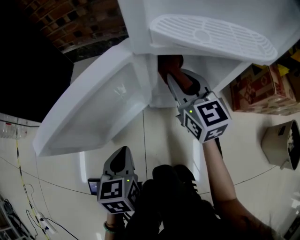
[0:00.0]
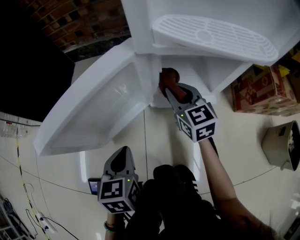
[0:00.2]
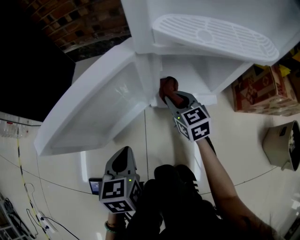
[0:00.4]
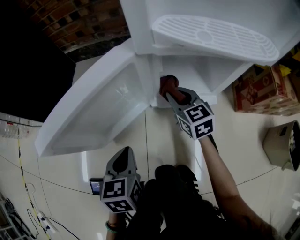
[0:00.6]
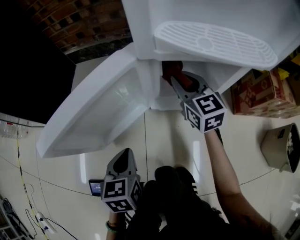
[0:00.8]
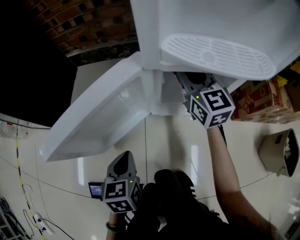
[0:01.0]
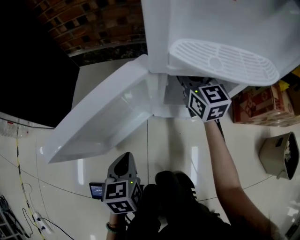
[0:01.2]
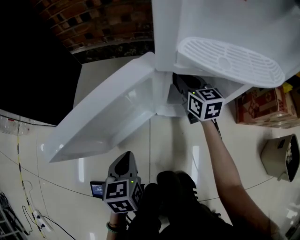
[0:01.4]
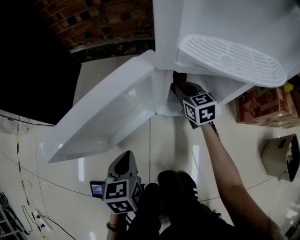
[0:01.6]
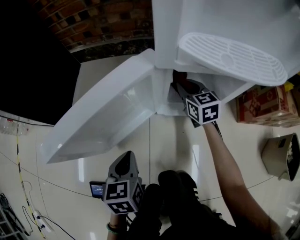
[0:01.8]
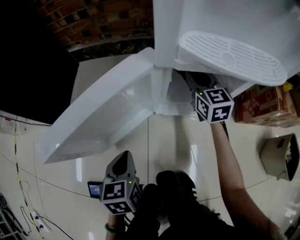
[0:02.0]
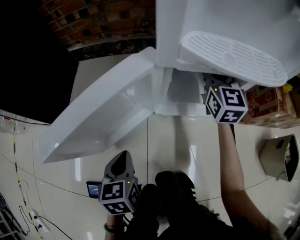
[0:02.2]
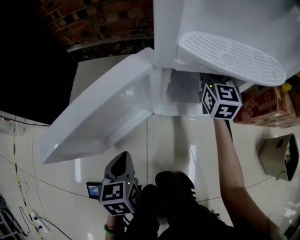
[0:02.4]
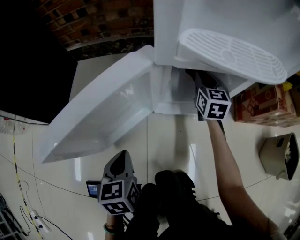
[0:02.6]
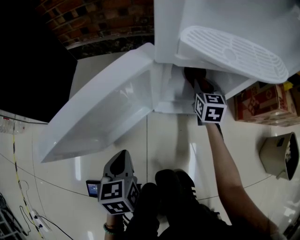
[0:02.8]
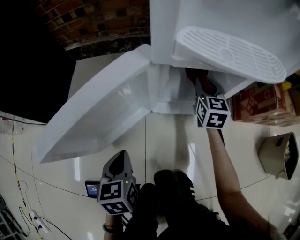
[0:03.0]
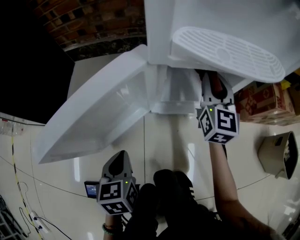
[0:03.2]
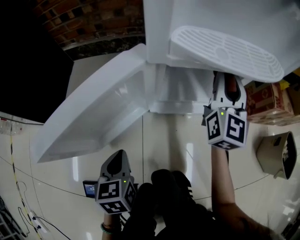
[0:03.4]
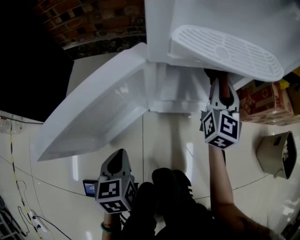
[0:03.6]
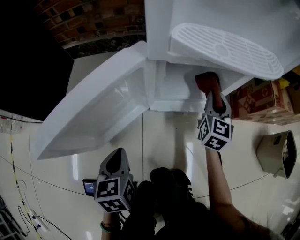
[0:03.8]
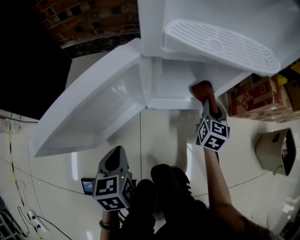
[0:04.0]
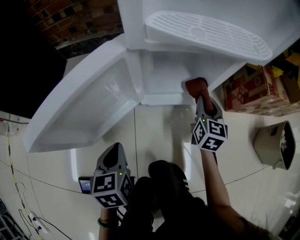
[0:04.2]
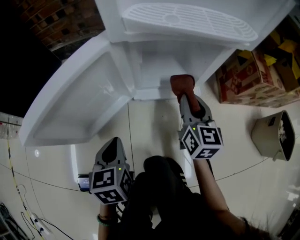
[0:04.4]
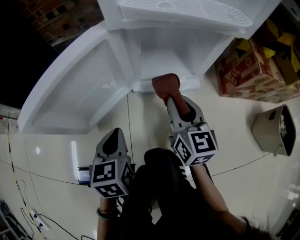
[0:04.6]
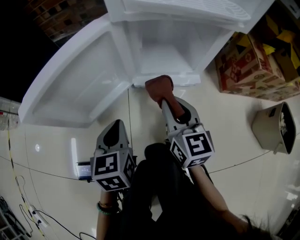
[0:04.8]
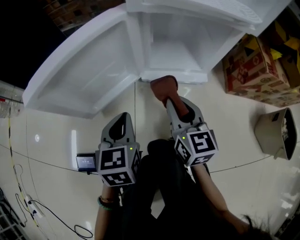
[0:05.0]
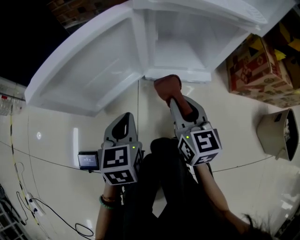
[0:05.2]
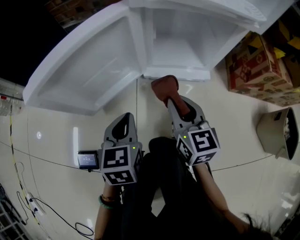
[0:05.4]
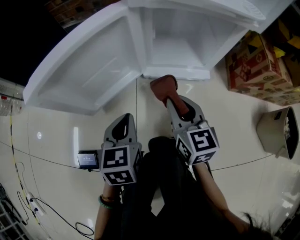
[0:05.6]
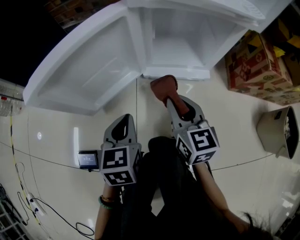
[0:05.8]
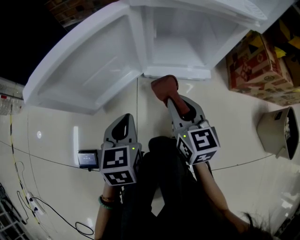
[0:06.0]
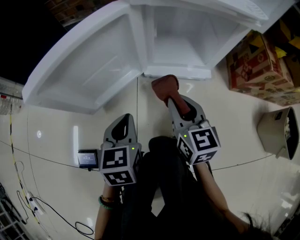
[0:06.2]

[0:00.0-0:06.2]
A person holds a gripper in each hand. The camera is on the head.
0:00.0 to 0:01.6: The right gripper swings up and down, some 15 cm each way, with 2 reversals.
0:01.6 to 0:03.2: The right gripper goes up and down, approximately 15 cm each way, reversing 2 times, and swivels some 40 degrees.
0:03.2 to 0:04.6: The left gripper travels to the right by roughly 5 cm; the right gripper swings up and down, some 20 cm each way, with 2 reversals, and rotates some 20 degrees.
0:04.6 to 0:06.2: The right gripper is displaced to the left by about 5 cm.

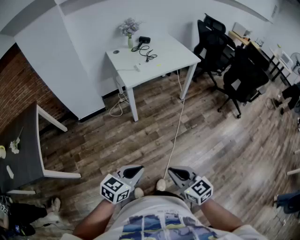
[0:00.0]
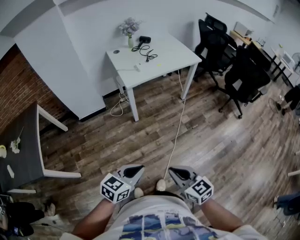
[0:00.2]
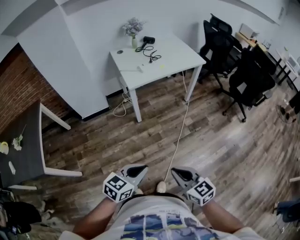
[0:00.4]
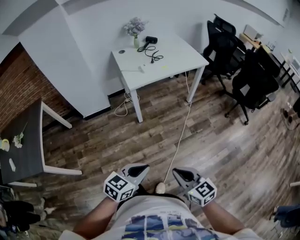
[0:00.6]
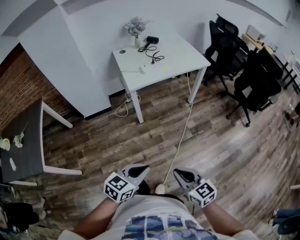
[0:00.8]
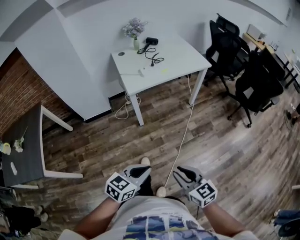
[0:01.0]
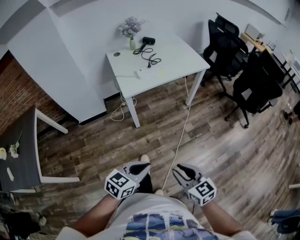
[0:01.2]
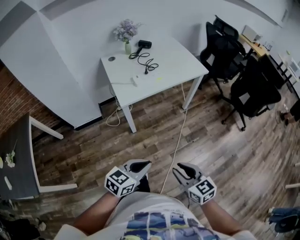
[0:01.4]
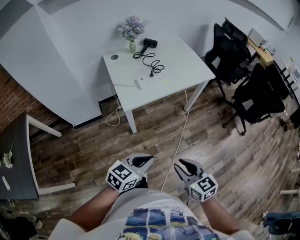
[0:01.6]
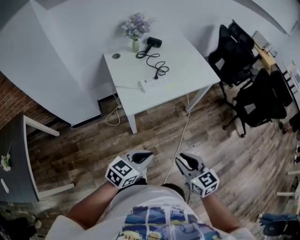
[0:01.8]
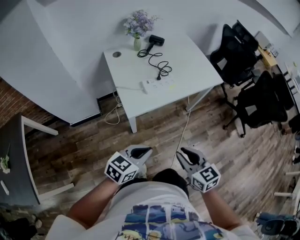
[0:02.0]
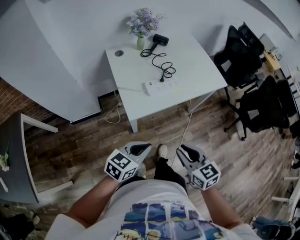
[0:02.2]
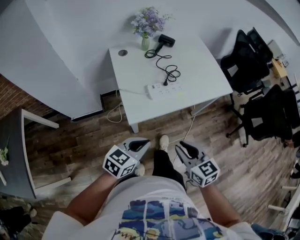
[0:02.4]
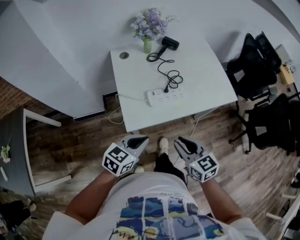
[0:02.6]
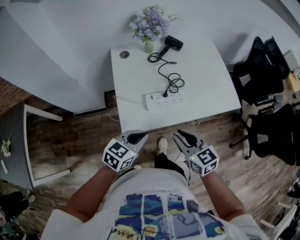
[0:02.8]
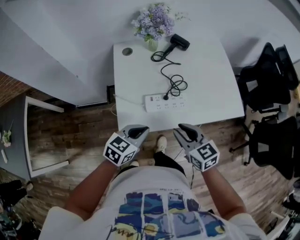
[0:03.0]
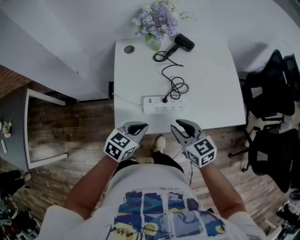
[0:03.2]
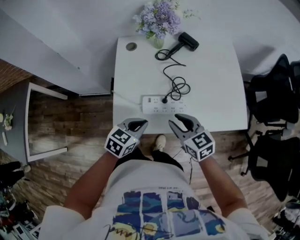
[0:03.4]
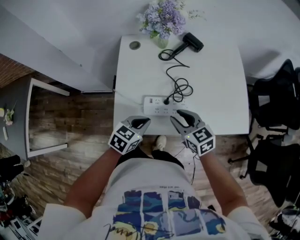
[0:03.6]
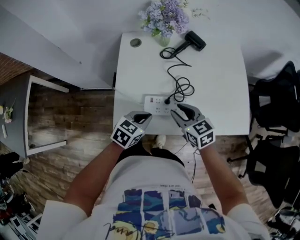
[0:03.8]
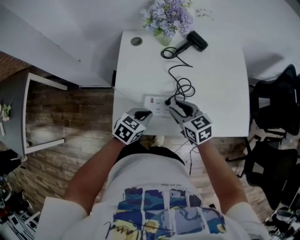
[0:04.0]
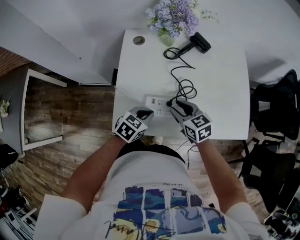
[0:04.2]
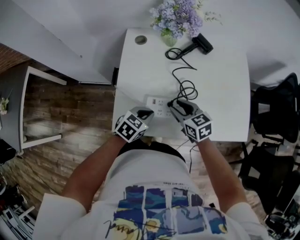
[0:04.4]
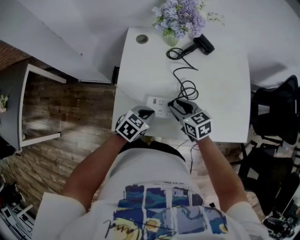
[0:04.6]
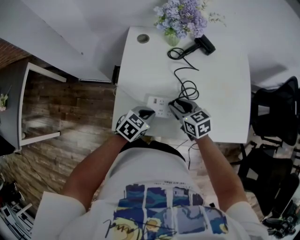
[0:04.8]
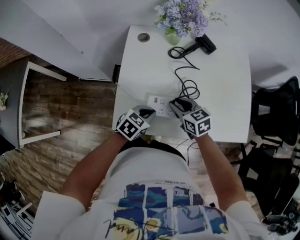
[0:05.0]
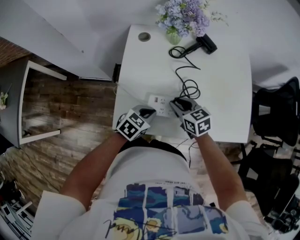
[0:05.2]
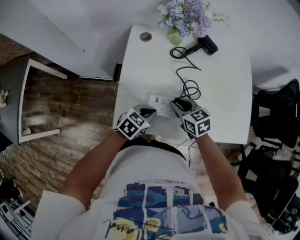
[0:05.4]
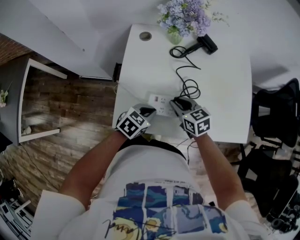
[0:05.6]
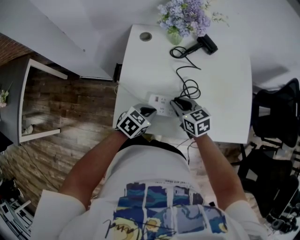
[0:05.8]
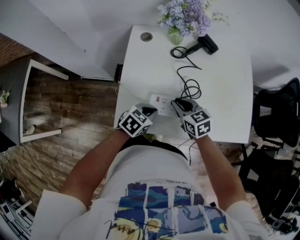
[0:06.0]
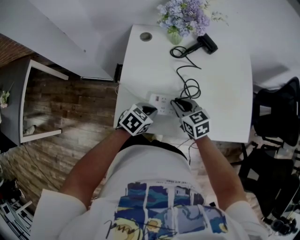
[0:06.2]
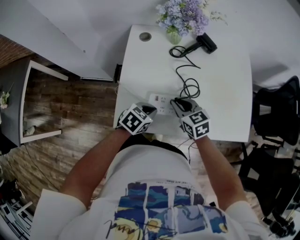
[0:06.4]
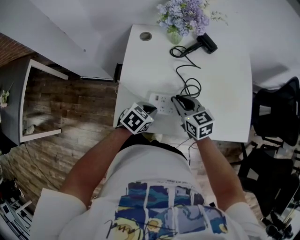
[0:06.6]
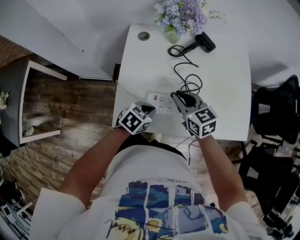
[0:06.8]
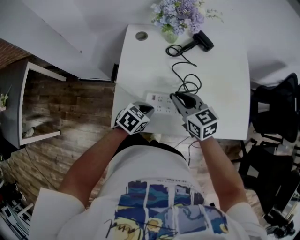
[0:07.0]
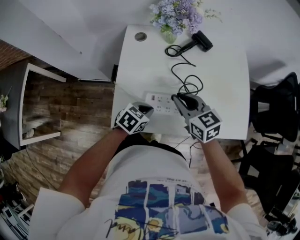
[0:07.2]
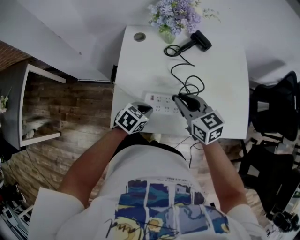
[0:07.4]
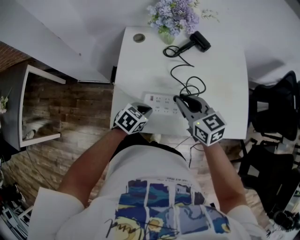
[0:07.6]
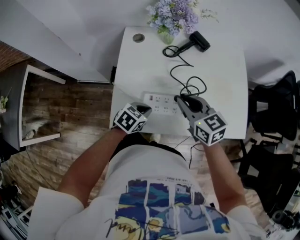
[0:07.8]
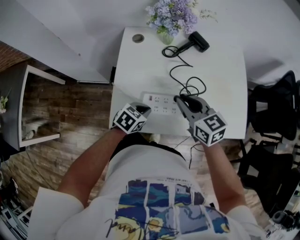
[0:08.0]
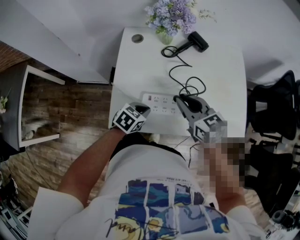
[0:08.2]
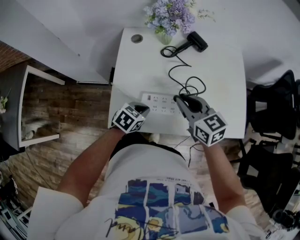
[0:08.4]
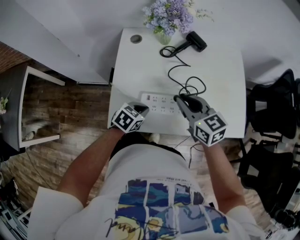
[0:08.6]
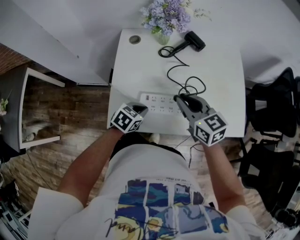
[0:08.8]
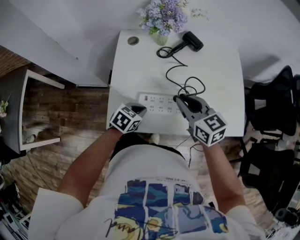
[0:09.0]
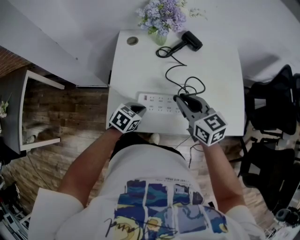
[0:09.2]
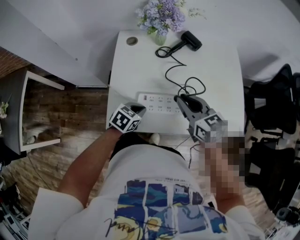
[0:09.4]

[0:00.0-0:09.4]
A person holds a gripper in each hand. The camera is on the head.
0:00.0 to 0:01.6: Both grippers move forward, roughly 30 cm. The right gripper opens its fingers.
0:01.6 to 0:03.2: Both grippers are carried approximately 40 cm. The left gripper changes its angle by some 30 degrees. Meanwhile the right gripper swivels approximately 20 degrees.
0:03.2 to 0:04.8: The left gripper travels downward and forward by approximately 10 cm. Meanwhile the right gripper moves forward and downward, approximately 15 cm.
0:04.8 to 0:06.2: The right gripper closes up.
0:06.2 to 0:07.8: The right gripper is displaced upward by approximately 10 cm.
0:07.8 to 0:09.4: The grippers stay close to where they were, moving slightly.

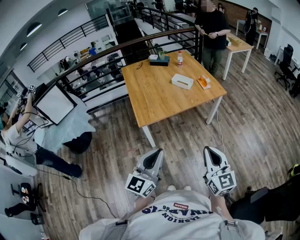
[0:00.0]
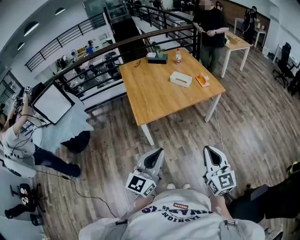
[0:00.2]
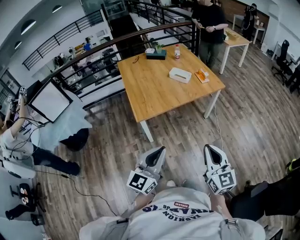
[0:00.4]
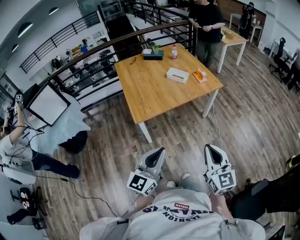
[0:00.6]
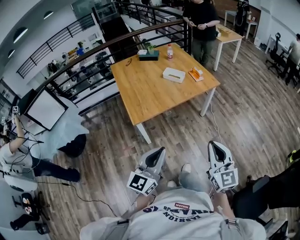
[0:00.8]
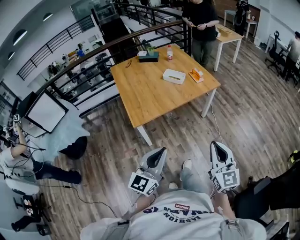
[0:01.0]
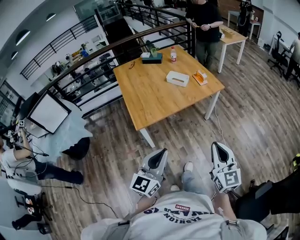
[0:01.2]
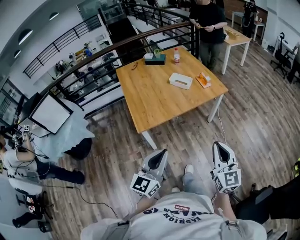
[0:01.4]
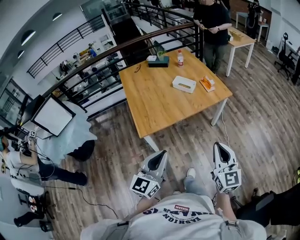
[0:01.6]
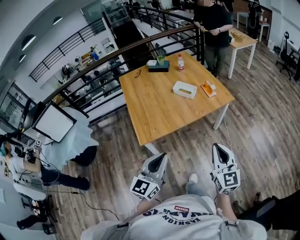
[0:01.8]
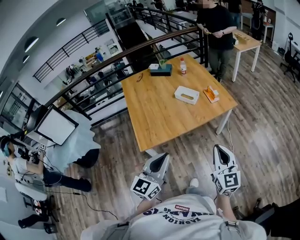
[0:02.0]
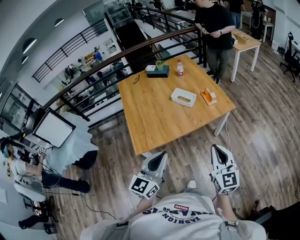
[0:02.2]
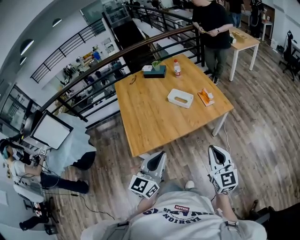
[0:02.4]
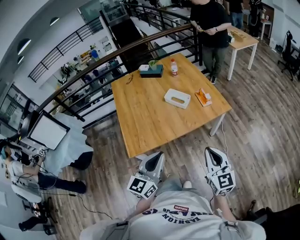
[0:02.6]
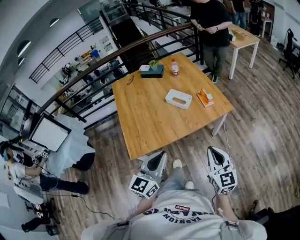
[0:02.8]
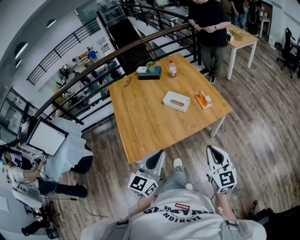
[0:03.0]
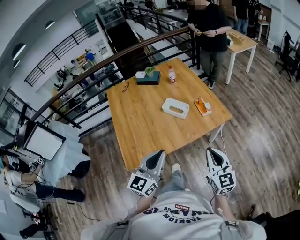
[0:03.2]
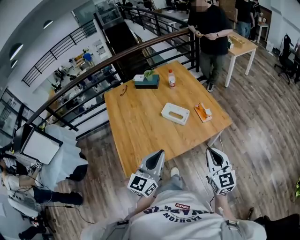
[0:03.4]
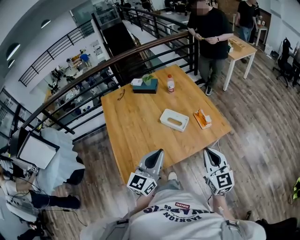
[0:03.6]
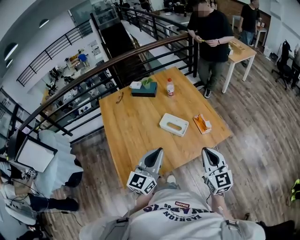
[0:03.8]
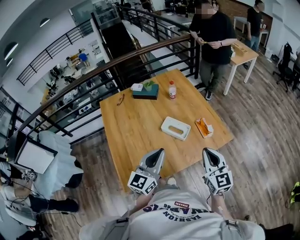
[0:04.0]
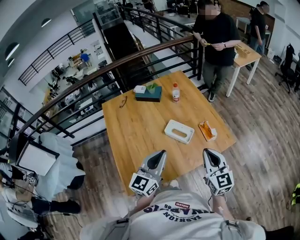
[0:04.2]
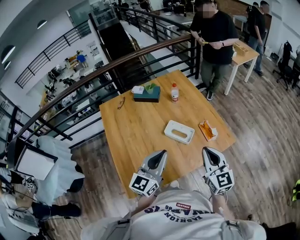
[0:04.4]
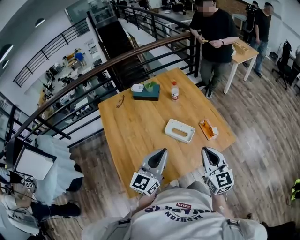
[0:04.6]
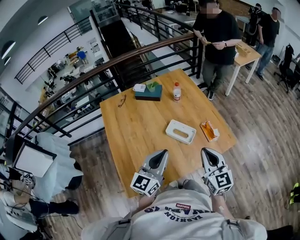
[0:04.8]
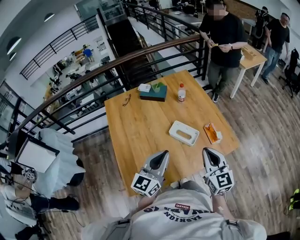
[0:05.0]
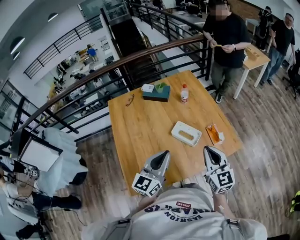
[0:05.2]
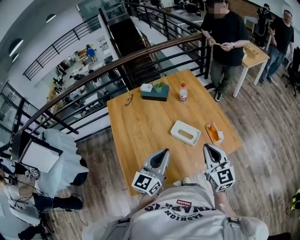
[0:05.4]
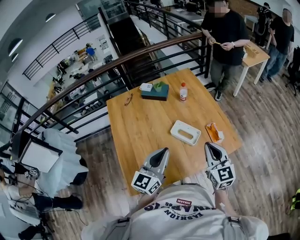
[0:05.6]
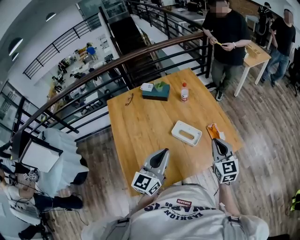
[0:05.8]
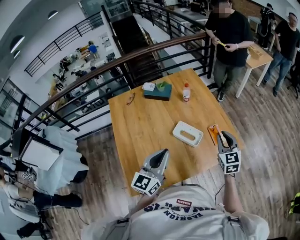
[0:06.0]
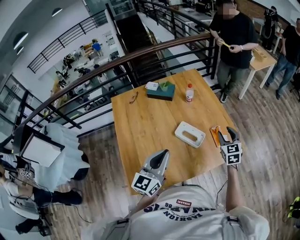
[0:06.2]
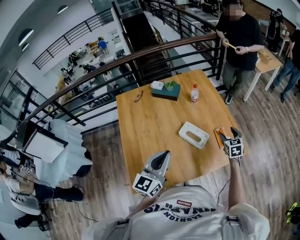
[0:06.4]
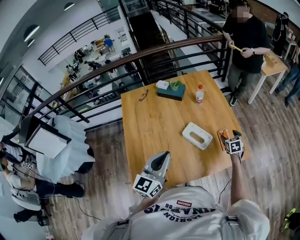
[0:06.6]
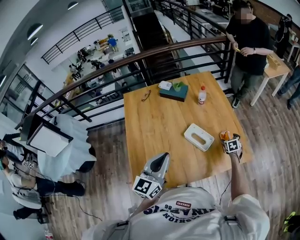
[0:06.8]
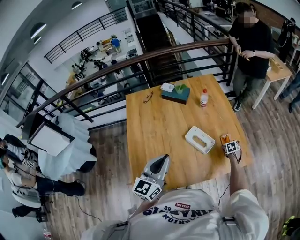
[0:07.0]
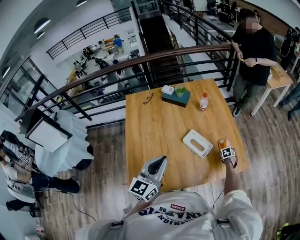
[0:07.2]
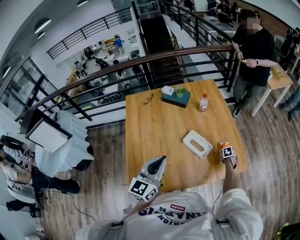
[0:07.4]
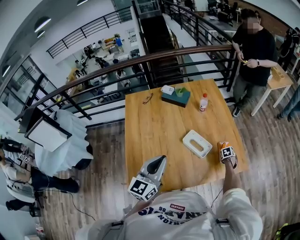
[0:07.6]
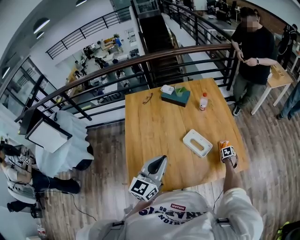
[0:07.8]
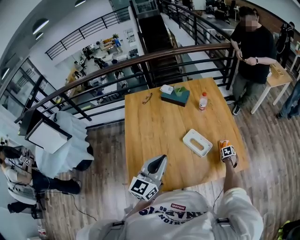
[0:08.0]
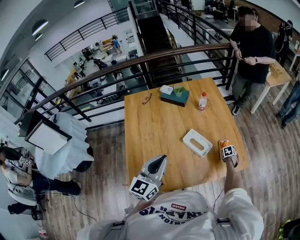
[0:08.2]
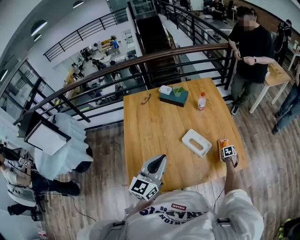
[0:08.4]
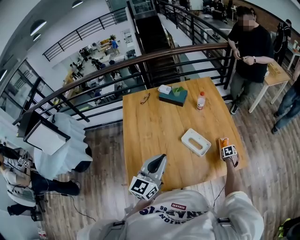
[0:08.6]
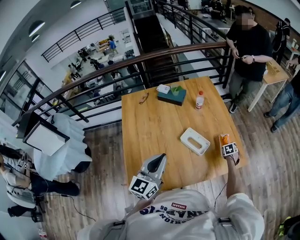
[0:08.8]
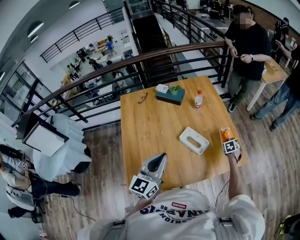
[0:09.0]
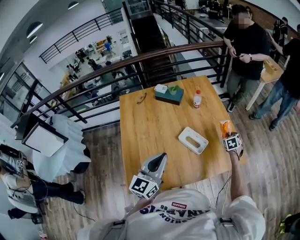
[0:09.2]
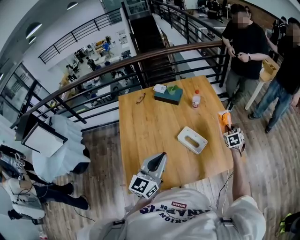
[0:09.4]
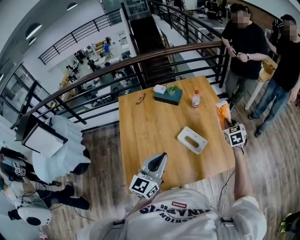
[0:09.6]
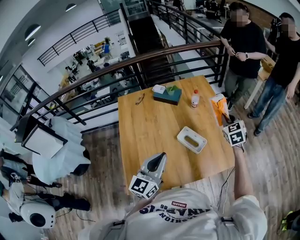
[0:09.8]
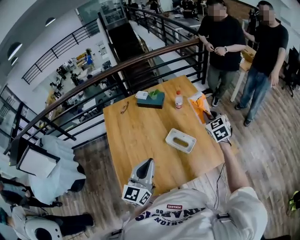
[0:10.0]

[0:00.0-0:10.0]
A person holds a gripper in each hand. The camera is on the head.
0:00.0 to 0:01.4: The grippers both shift forward by some 10 cm.
0:01.4 to 0:02.8: The two grippers go approximately 25 cm forward.
0:02.8 to 0:04.2: Both grippers travel together forward, roughly 30 cm.
0:04.2 to 0:05.8: The right gripper heads forward, covering some 10 cm.
0:05.8 to 0:07.2: The right gripper goes approximately 40 cm downward and forward, points its fingers some 60 degrees further downward, and opens.
0:07.2 to 0:08.6: The right gripper closes its fingers.
0:08.6 to 0:10.0: The right gripper shifts approximately 35 cm upward, and tips its fingers upward by some 40 degrees.
